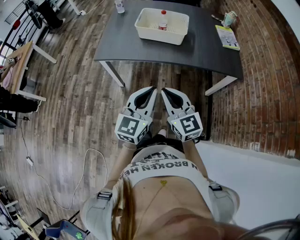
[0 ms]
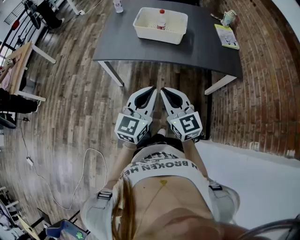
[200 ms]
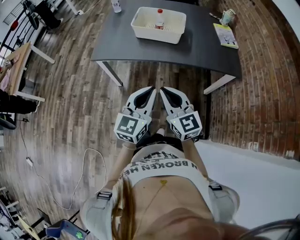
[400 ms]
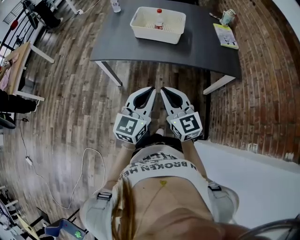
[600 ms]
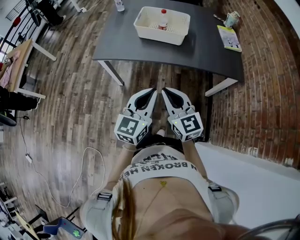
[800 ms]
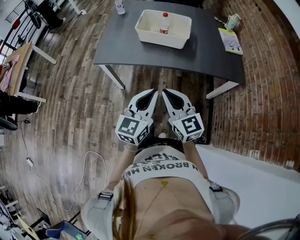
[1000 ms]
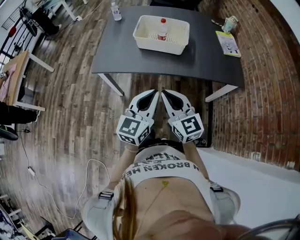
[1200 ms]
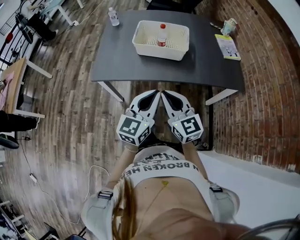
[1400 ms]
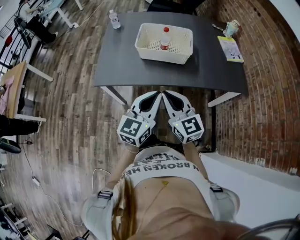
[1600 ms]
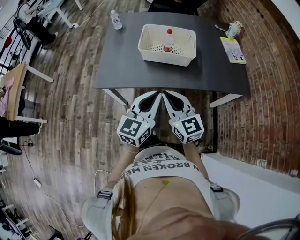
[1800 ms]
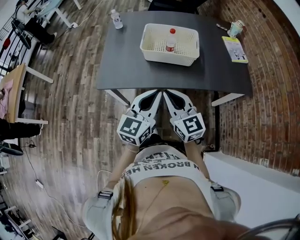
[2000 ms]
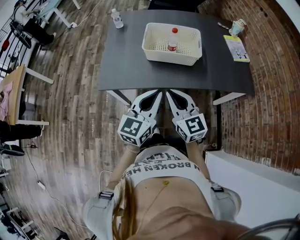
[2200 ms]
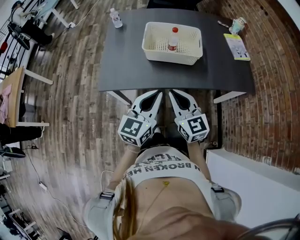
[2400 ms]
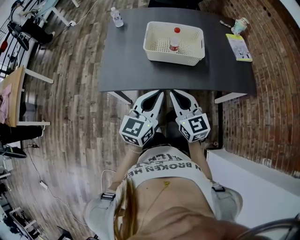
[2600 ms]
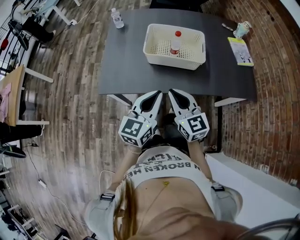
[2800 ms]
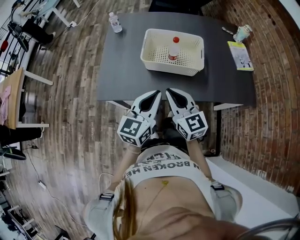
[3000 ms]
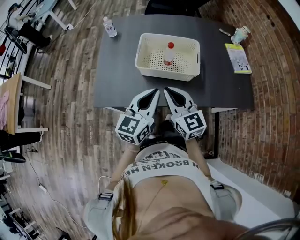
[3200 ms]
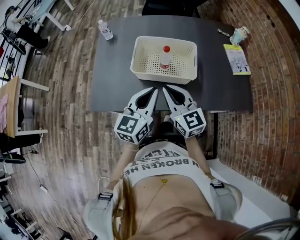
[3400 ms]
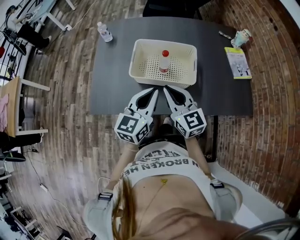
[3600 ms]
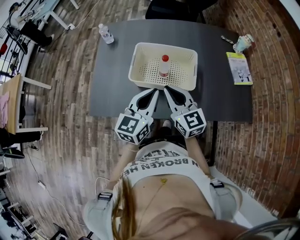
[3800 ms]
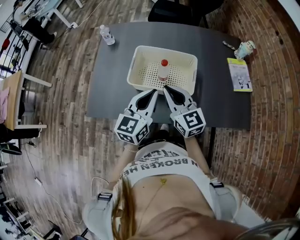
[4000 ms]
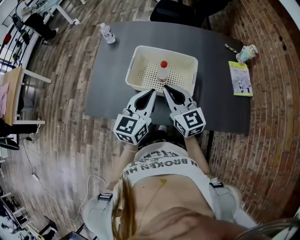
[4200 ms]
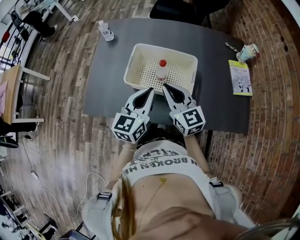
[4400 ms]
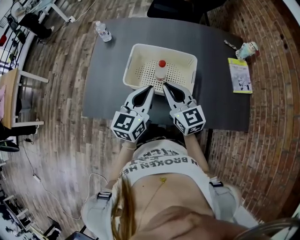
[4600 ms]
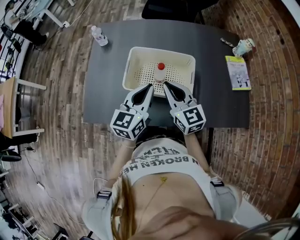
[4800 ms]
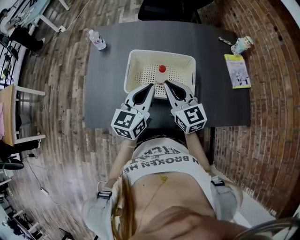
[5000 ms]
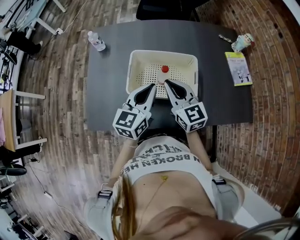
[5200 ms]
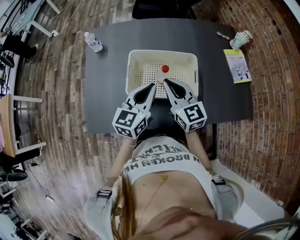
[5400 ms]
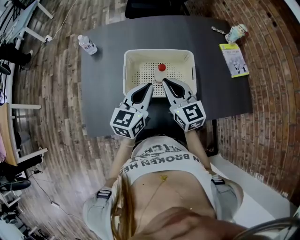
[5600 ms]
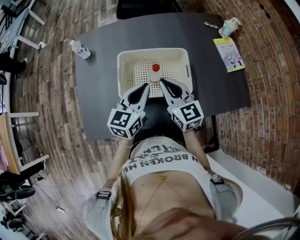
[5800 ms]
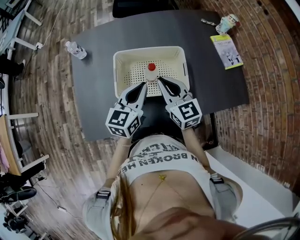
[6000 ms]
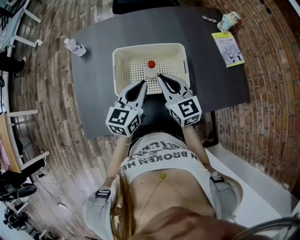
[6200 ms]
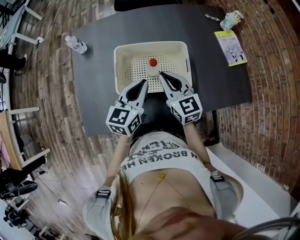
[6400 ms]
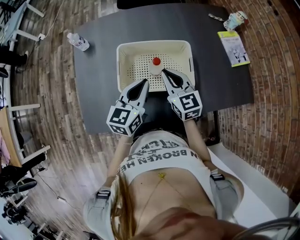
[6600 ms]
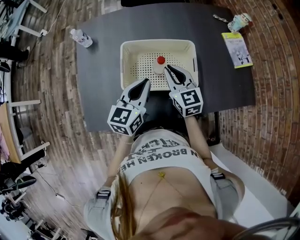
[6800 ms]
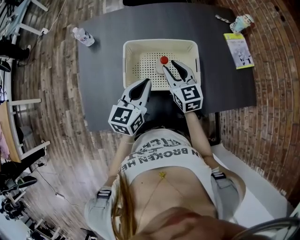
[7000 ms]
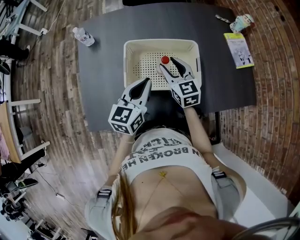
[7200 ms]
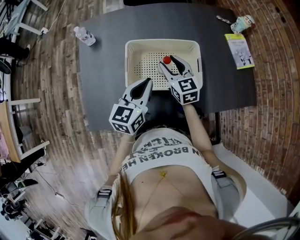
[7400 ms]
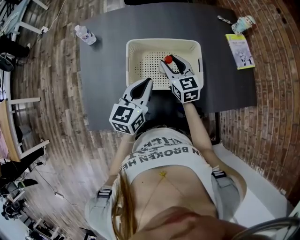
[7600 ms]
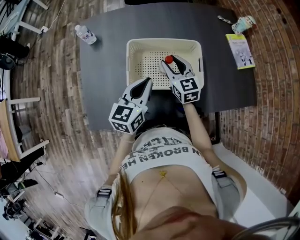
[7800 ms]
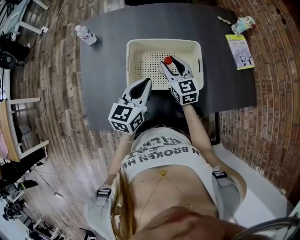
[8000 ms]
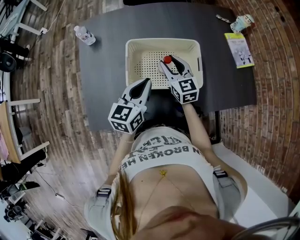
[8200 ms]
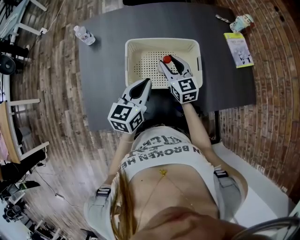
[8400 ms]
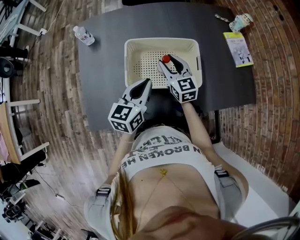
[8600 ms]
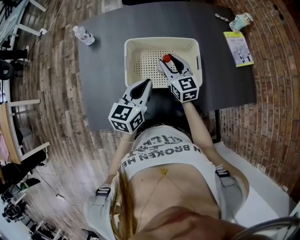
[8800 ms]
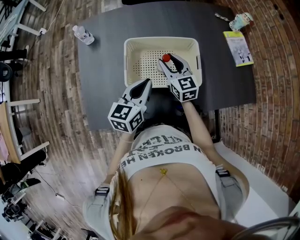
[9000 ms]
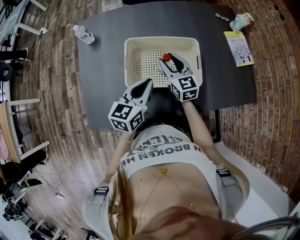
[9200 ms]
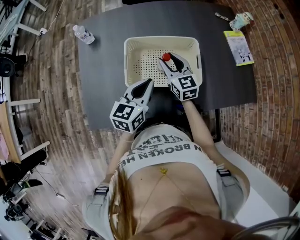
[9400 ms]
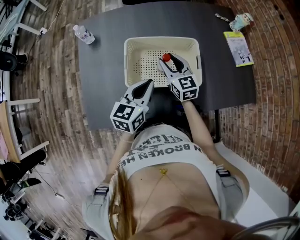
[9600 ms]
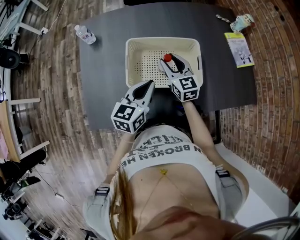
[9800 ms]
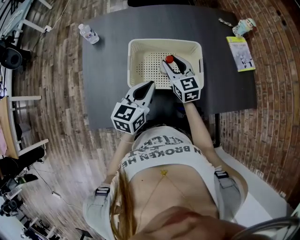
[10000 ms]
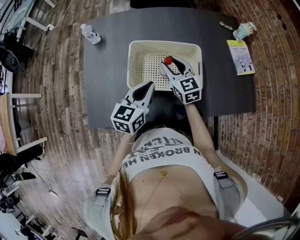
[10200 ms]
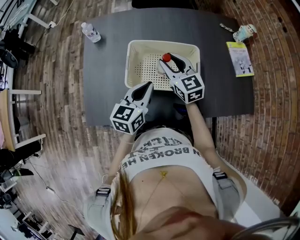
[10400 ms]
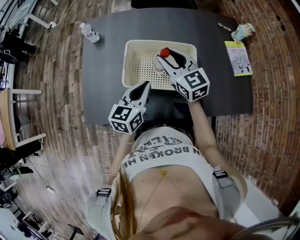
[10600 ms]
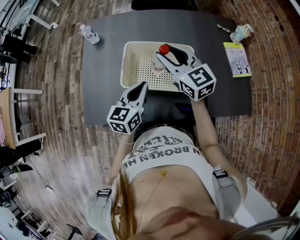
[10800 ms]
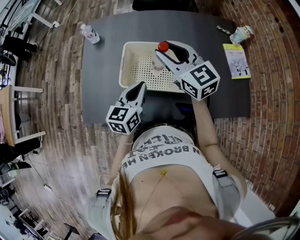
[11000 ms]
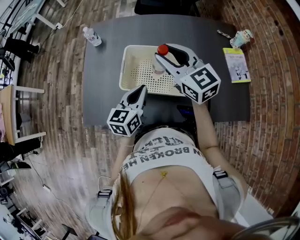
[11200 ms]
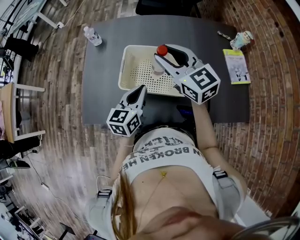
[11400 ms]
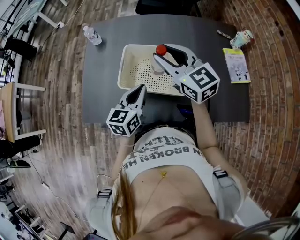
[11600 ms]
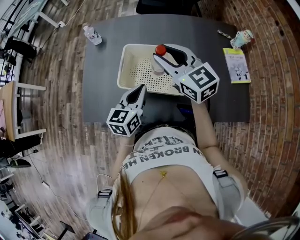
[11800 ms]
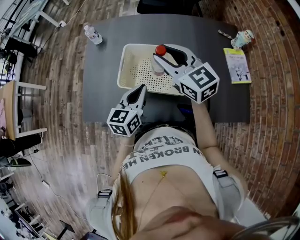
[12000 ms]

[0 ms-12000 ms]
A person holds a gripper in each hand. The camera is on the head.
0 ms to 1600 ms: The grippers both shift forward by approximately 15 cm.
1600 ms to 3000 ms: Both grippers travel together forward, approximately 15 cm.
3000 ms to 4400 ms: Both grippers travel together forward and to the right, about 20 cm.
4400 ms to 6000 ms: The grippers both shift forward by some 5 cm.
6000 ms to 7600 ms: The right gripper shifts about 10 cm downward and forward, and opens its fingers.
7600 ms to 9000 ms: The grippers make only small movements.
9000 ms to 10400 ms: The right gripper shifts some 5 cm upward.
10400 ms to 12000 ms: The right gripper goes roughly 15 cm upward.

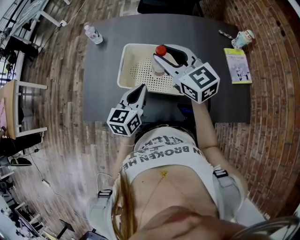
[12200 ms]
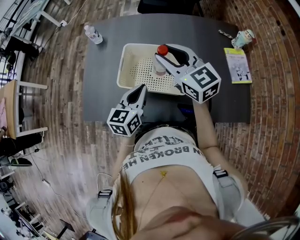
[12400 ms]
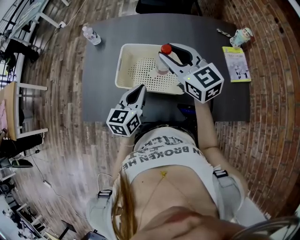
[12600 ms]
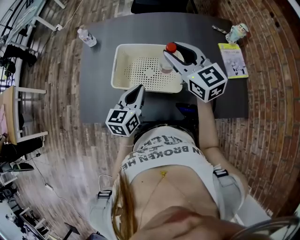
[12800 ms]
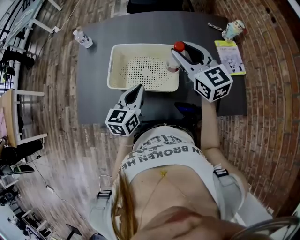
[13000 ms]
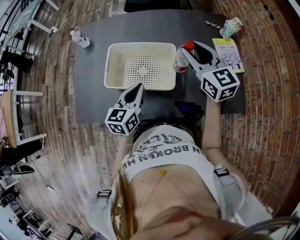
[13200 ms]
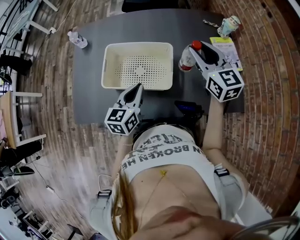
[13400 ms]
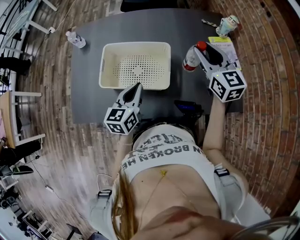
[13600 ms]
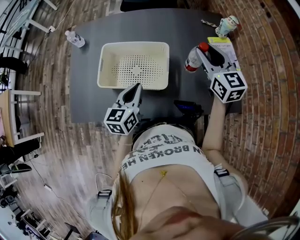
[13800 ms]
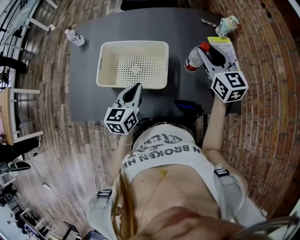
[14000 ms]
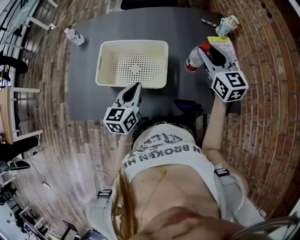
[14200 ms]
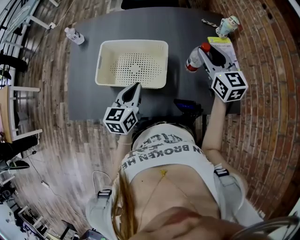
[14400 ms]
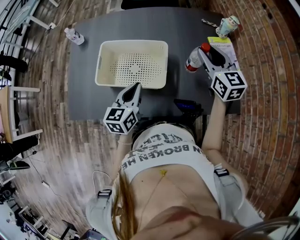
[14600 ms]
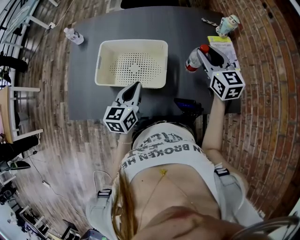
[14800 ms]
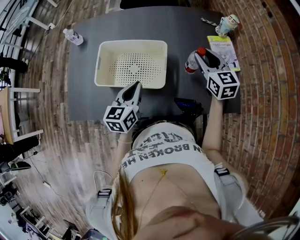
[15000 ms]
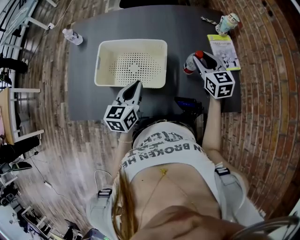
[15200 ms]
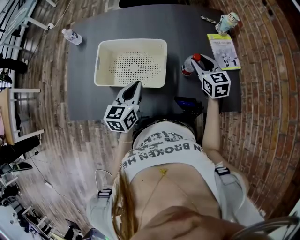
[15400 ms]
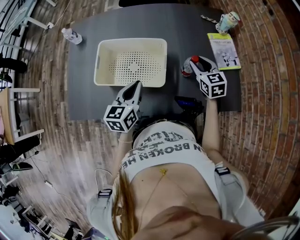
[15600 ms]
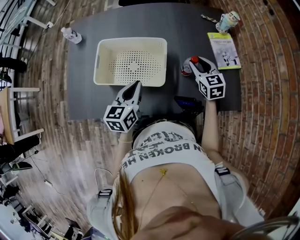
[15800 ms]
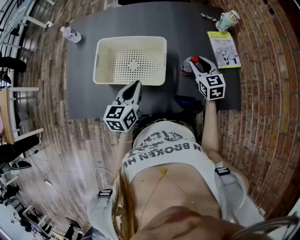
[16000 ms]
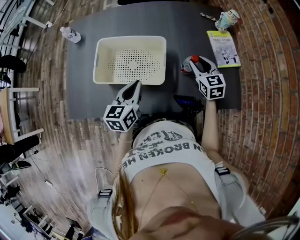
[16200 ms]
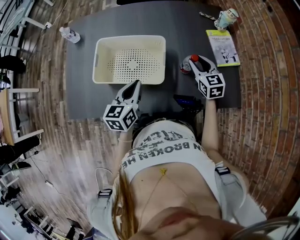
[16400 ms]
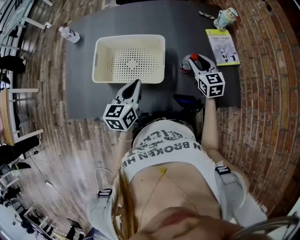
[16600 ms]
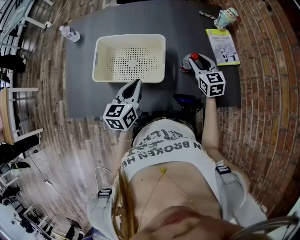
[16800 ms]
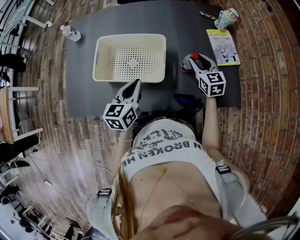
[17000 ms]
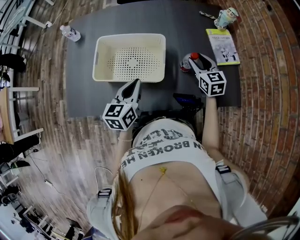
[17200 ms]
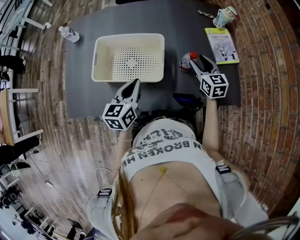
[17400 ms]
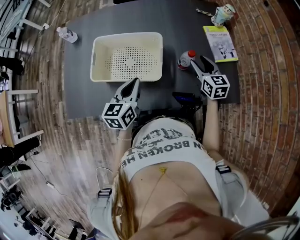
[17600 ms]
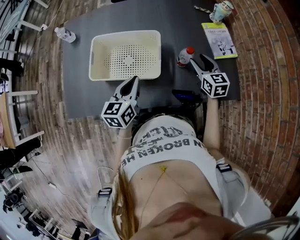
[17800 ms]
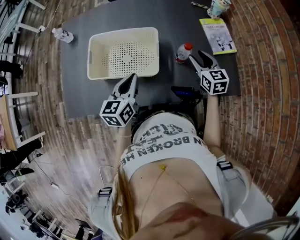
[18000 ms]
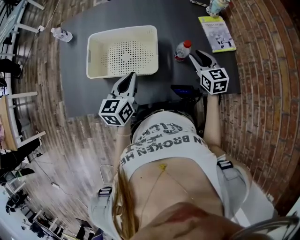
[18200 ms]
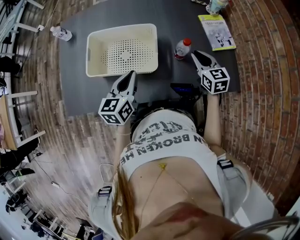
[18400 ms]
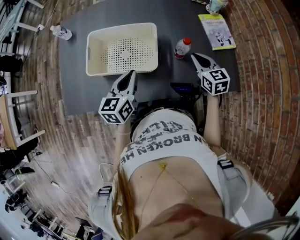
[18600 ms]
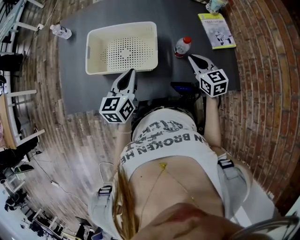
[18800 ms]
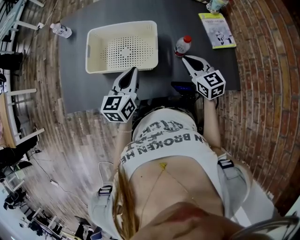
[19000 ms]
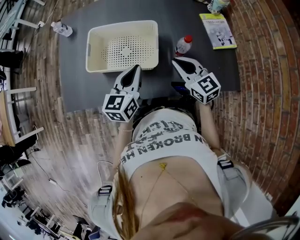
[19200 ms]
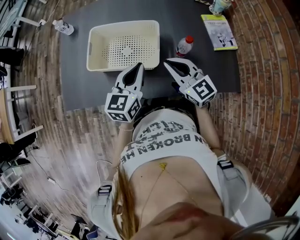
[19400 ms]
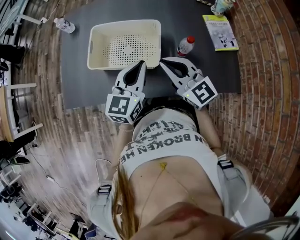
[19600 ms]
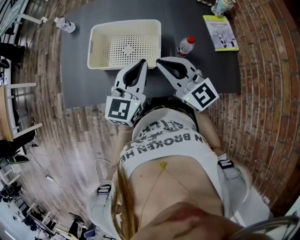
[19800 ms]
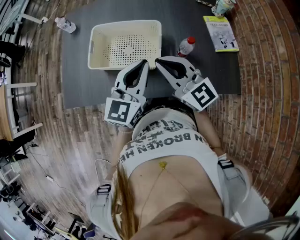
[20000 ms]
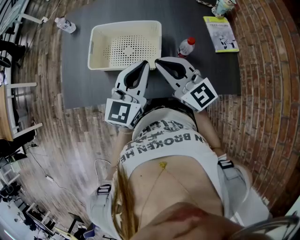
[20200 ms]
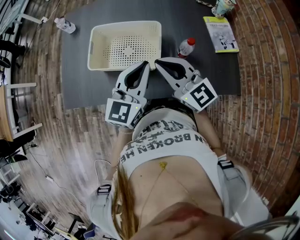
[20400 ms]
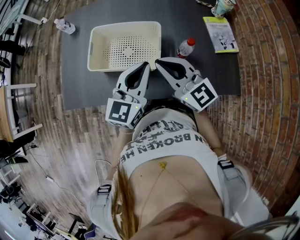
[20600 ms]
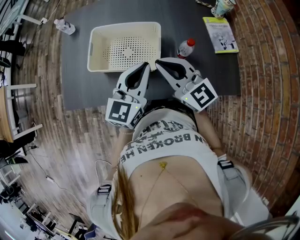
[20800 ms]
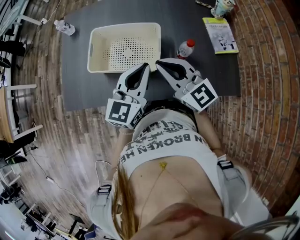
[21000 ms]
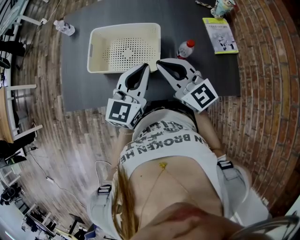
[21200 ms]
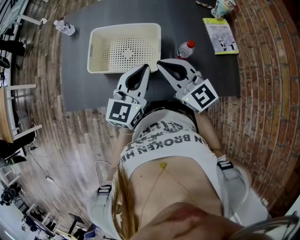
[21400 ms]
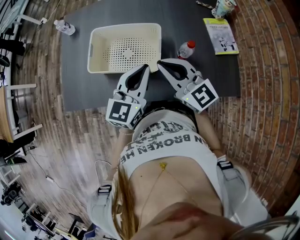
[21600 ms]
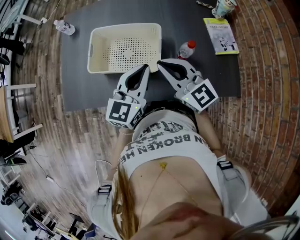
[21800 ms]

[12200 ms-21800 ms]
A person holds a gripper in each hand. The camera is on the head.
12200 ms to 13800 ms: The right gripper is displaced to the right by about 25 cm, and swivels some 30 degrees. Meanwhile the left gripper is displaced to the right by approximately 10 cm.
13800 ms to 15400 ms: The right gripper travels downward by approximately 15 cm.
15400 ms to 17000 ms: The grippers move only a little.
17000 ms to 18600 ms: The right gripper heads backward, covering roughly 5 cm, and closes.
18600 ms to 20200 ms: The right gripper moves to the left and upward, some 25 cm, and tips its fingers upward by about 30 degrees. The left gripper moves upward, some 10 cm, and changes its angle by approximately 20 degrees.
20200 ms to 21800 ms: The grippers make only small movements.

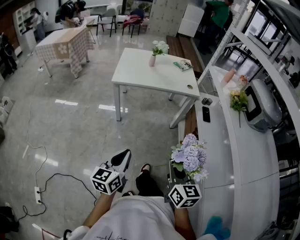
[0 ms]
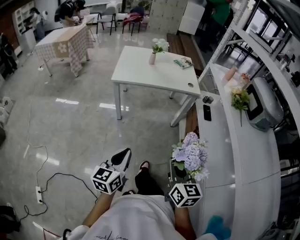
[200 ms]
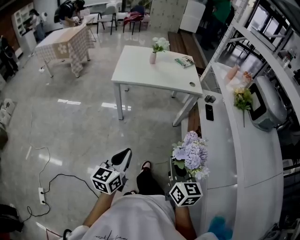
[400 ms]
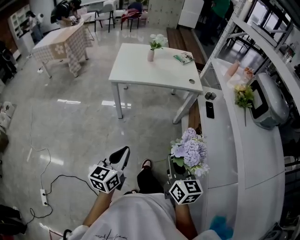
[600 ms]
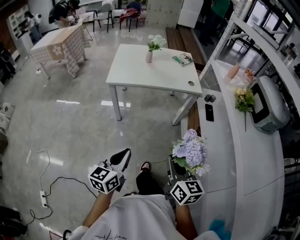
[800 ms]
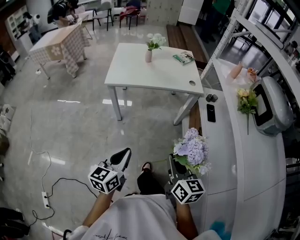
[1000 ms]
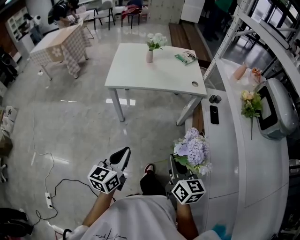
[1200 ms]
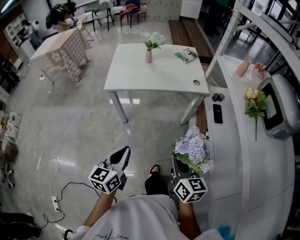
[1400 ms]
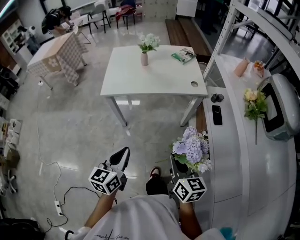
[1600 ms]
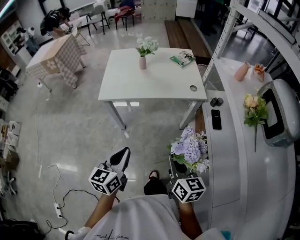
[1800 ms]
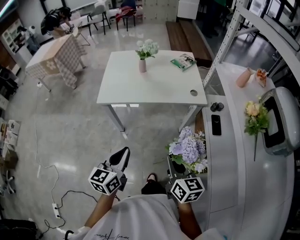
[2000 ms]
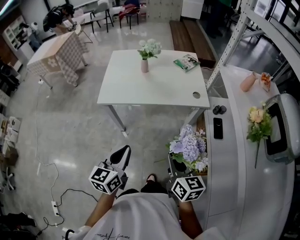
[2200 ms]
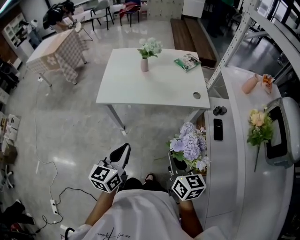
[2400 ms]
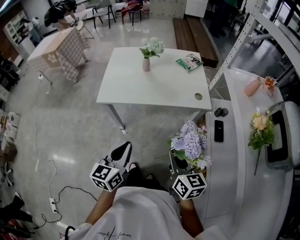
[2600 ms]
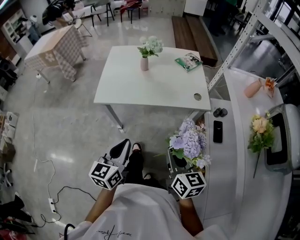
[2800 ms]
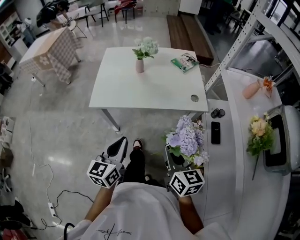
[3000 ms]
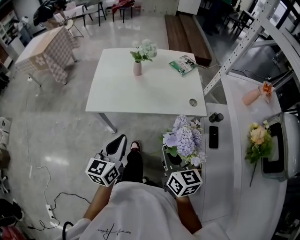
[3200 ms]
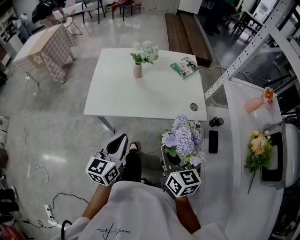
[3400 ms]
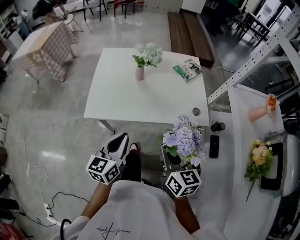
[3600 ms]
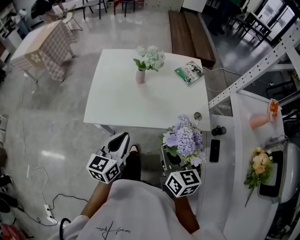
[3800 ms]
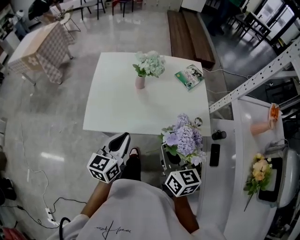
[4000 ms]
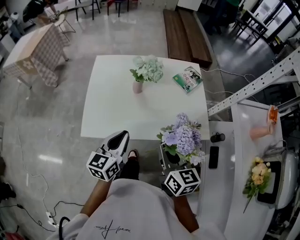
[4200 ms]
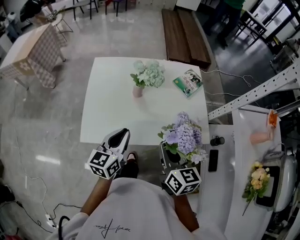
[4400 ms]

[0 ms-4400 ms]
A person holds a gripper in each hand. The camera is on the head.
0 ms to 1400 ms: The two grippers go roughly 20 cm forward.
1400 ms to 3000 ms: The two grippers go about 20 cm forward.
3000 ms to 4400 ms: The two grippers go roughly 25 cm forward.
